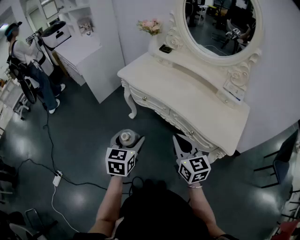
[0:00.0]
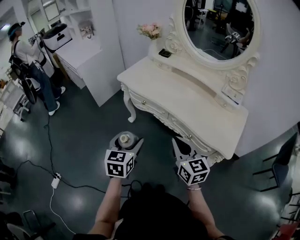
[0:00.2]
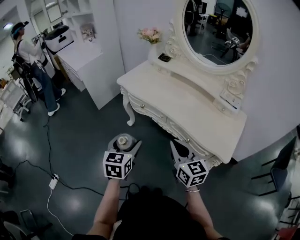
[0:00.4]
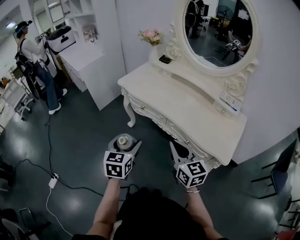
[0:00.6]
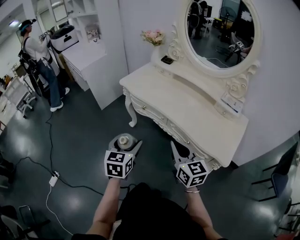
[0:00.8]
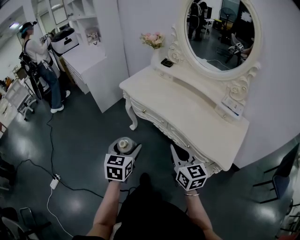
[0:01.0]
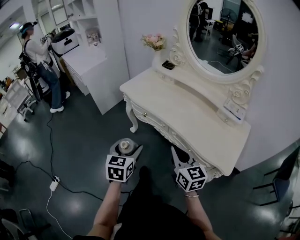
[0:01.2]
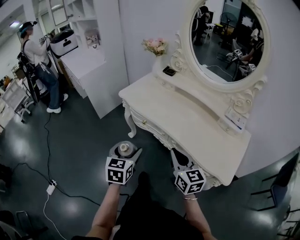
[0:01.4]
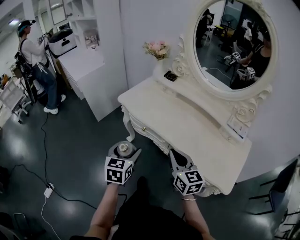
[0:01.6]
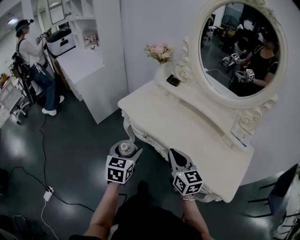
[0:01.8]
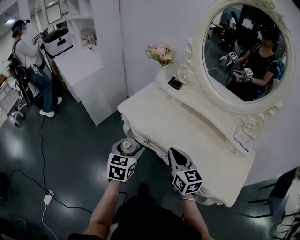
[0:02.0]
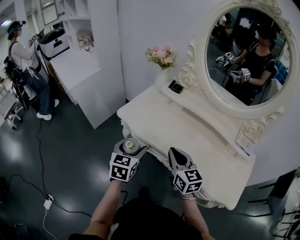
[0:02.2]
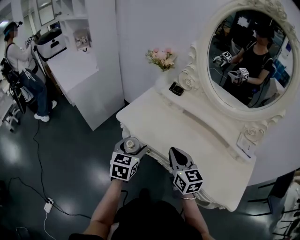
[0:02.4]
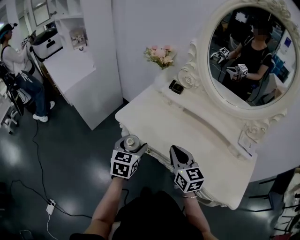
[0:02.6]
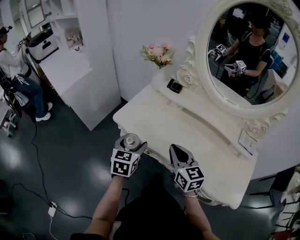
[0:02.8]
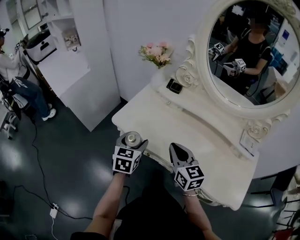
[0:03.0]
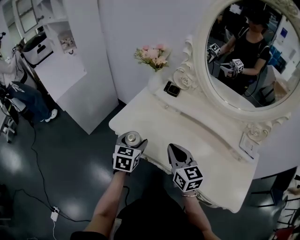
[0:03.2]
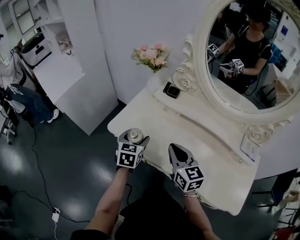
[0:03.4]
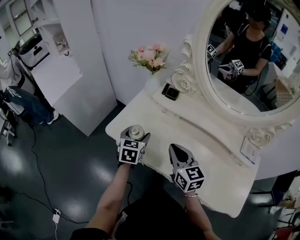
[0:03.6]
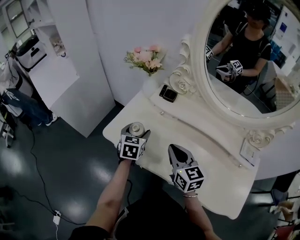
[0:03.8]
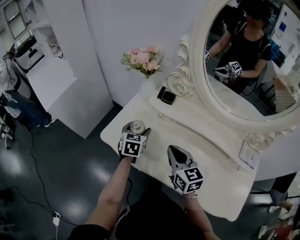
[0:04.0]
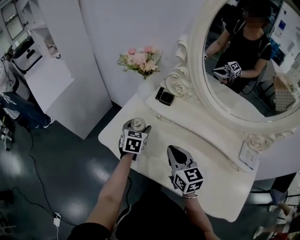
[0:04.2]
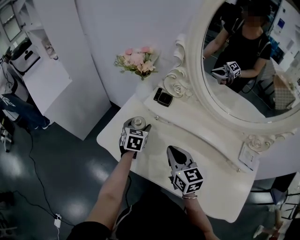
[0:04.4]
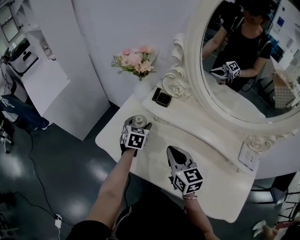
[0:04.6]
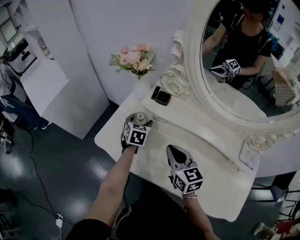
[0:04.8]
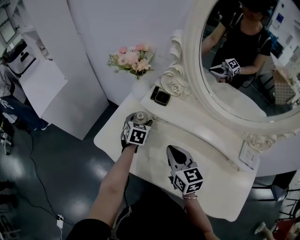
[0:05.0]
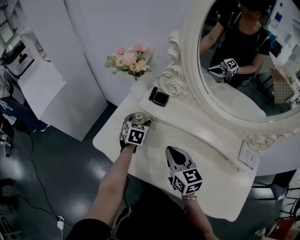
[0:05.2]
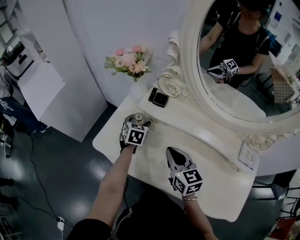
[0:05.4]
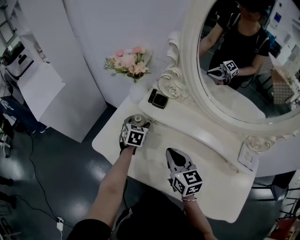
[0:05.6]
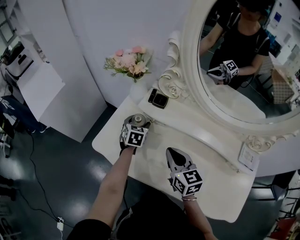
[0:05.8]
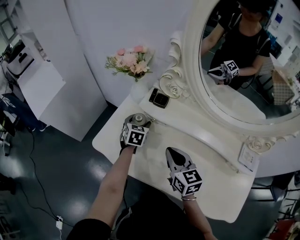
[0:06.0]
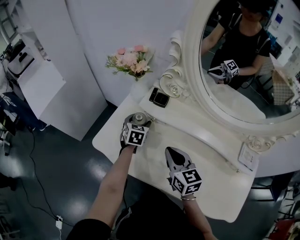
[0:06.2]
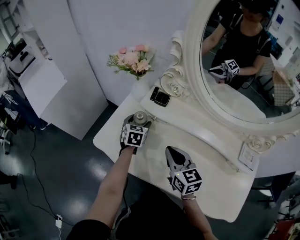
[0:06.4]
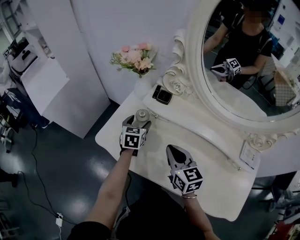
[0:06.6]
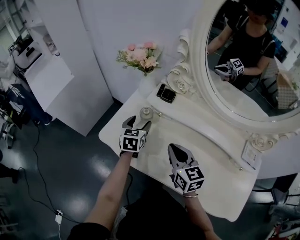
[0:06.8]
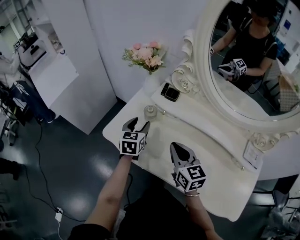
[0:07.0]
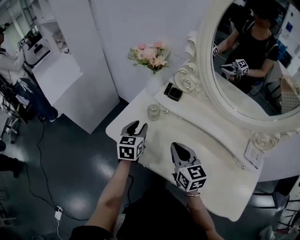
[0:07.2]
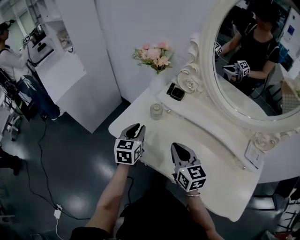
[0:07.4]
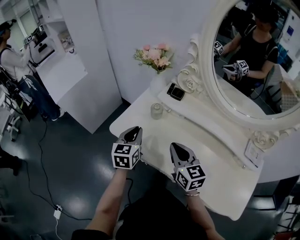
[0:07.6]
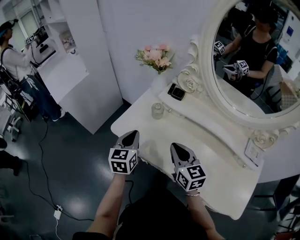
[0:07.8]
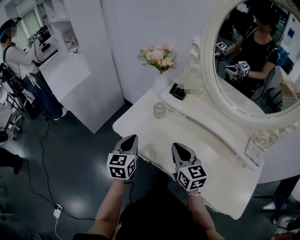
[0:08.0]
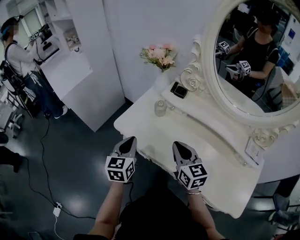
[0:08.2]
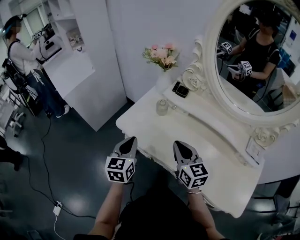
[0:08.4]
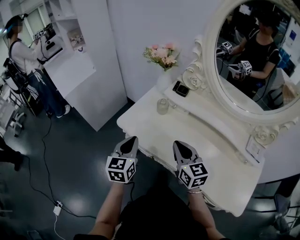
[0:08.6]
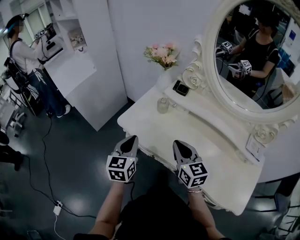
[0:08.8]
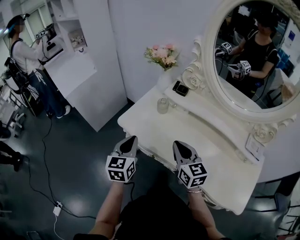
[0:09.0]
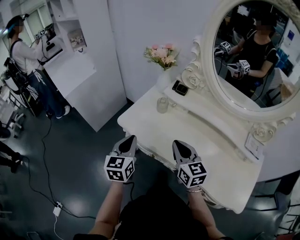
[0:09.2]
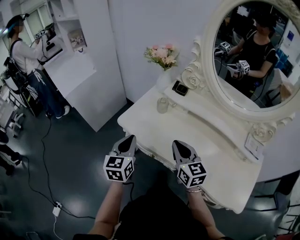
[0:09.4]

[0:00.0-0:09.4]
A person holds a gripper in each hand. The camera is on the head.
0:00.0 to 0:01.6: The grippers both shift forward by about 15 cm.
0:01.6 to 0:03.2: The grippers both shift forward by some 25 cm.
0:03.2 to 0:04.8: The left gripper moves forward and to the right, about 25 cm. Meanwhile the right gripper is displaced forward and to the right by about 10 cm.
0:04.8 to 0:06.2: The grippers make only small movements.
0:06.2 to 0:07.8: The right gripper goes some 5 cm backward. The left gripper is displaced backward, to the left and upward by about 25 cm, swivels approximately 20 degrees, and closes.
0:07.8 to 0:09.4: The left gripper shifts roughly 10 cm backward.
